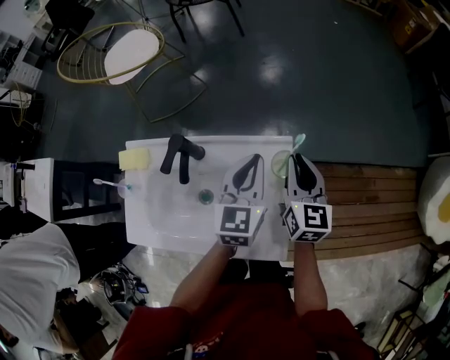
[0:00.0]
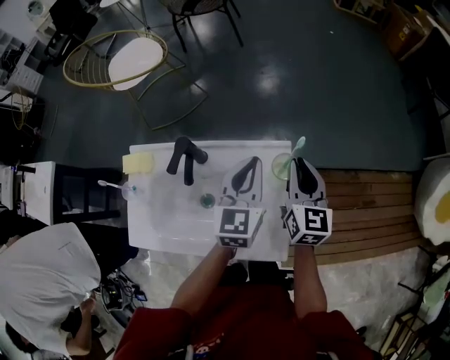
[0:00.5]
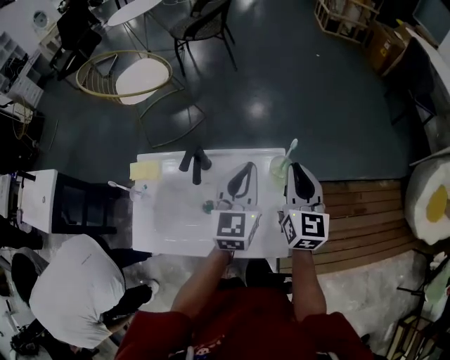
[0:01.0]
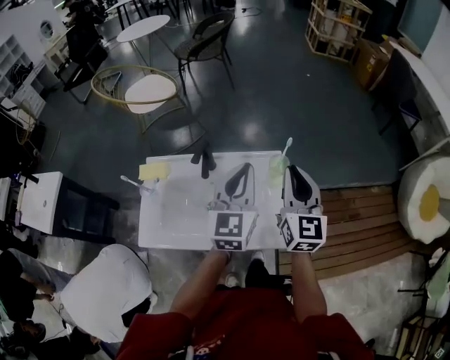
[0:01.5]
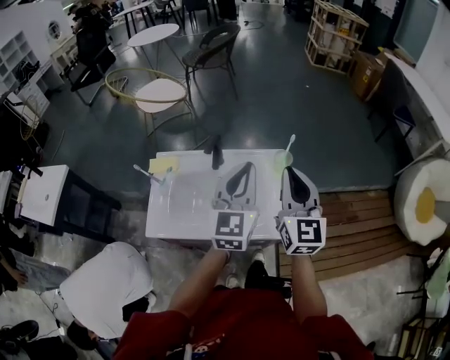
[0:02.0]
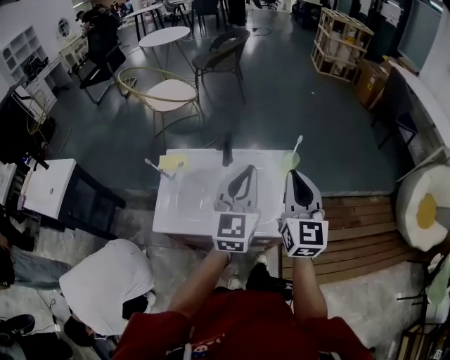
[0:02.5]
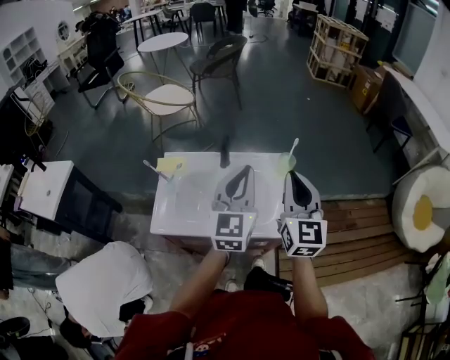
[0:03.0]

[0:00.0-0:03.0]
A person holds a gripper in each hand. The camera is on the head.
0:00.0 to 0:01.5: The left gripper travels upward, backward and to the left by approximately 20 cm, while the right gripper moves upward and backward, approximately 20 cm, and turns by approximately 20 degrees.
0:01.5 to 0:03.0: Both grippers travel together backward and to the left, about 15 cm.

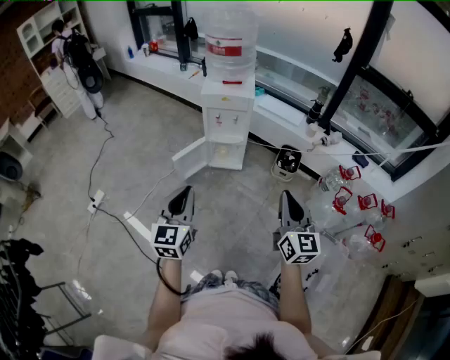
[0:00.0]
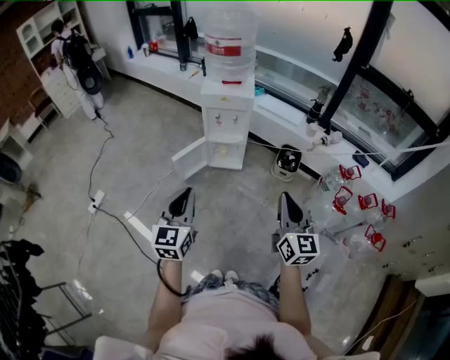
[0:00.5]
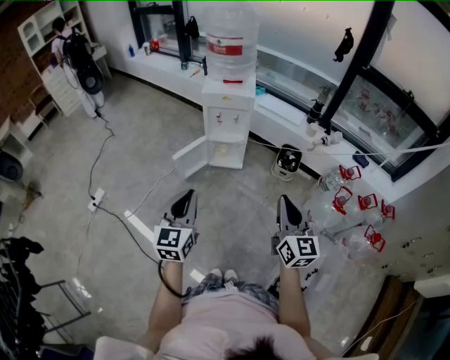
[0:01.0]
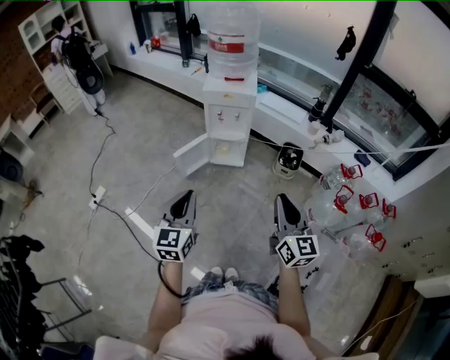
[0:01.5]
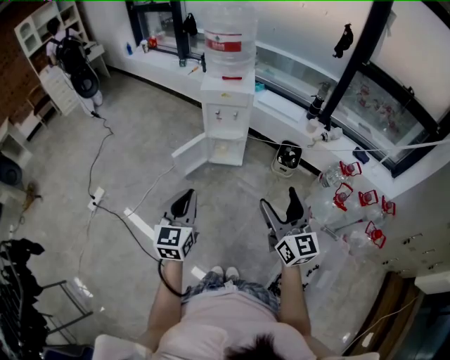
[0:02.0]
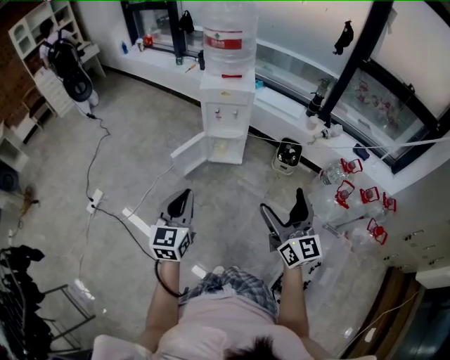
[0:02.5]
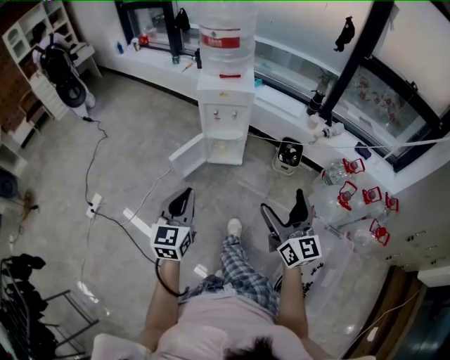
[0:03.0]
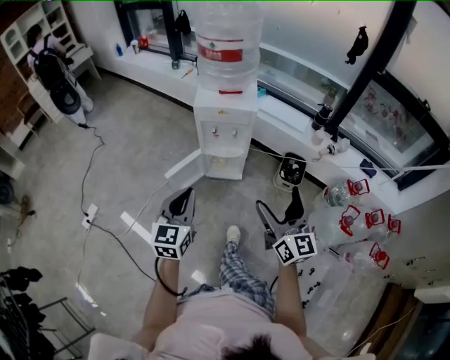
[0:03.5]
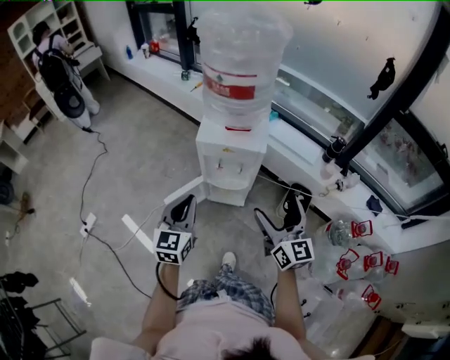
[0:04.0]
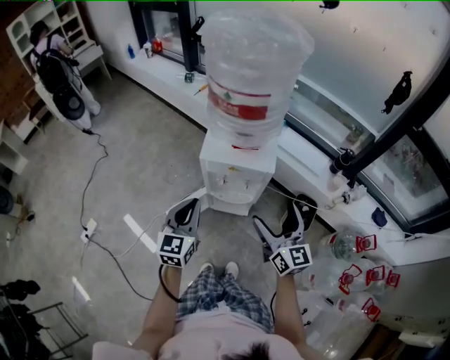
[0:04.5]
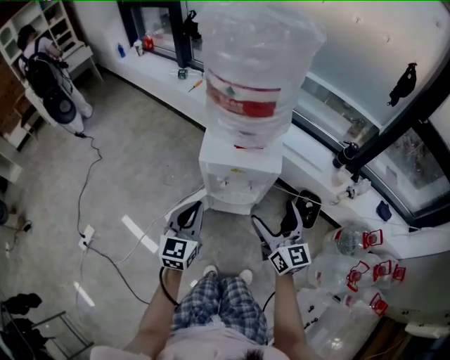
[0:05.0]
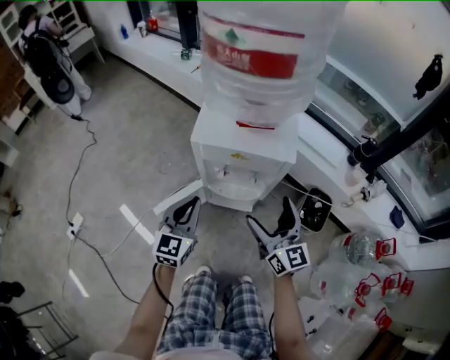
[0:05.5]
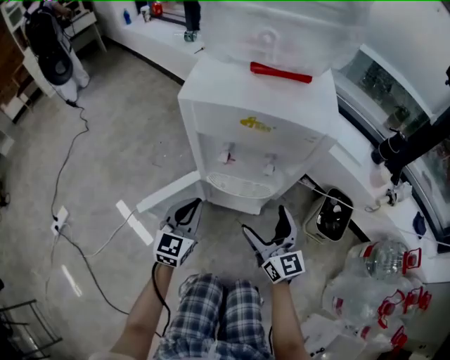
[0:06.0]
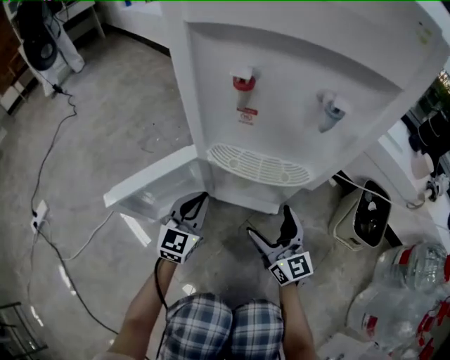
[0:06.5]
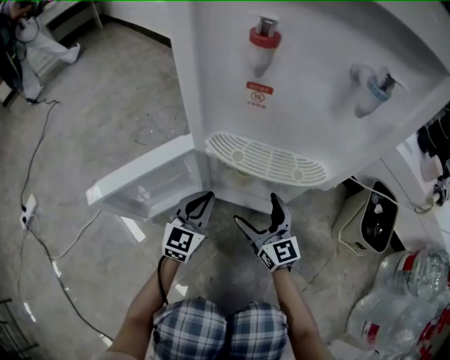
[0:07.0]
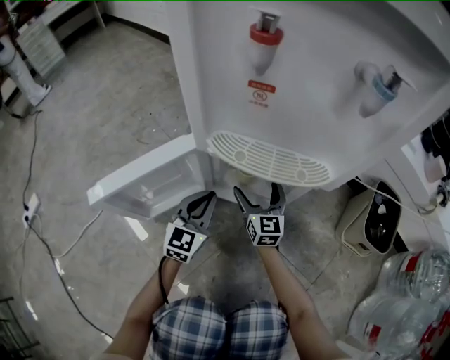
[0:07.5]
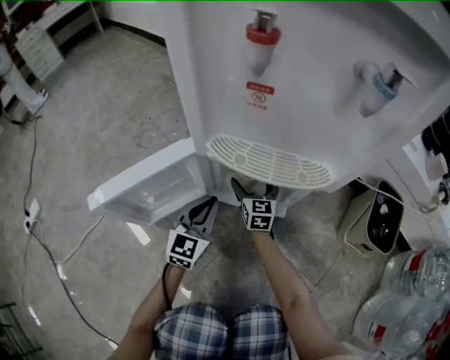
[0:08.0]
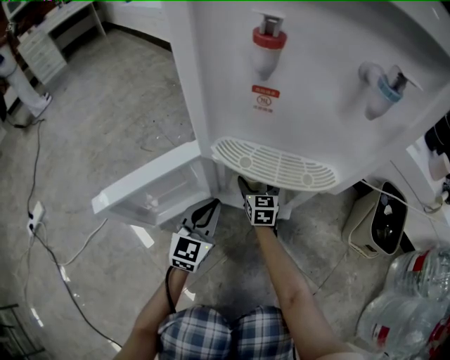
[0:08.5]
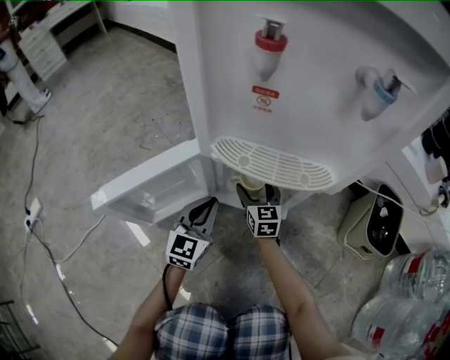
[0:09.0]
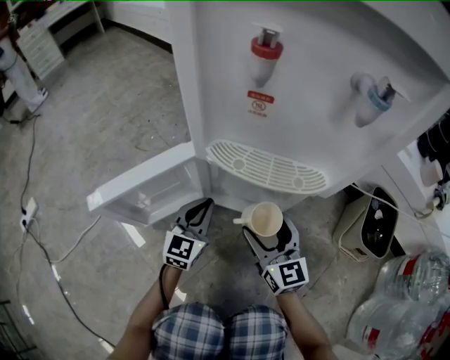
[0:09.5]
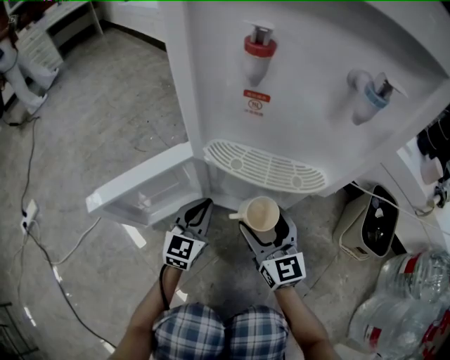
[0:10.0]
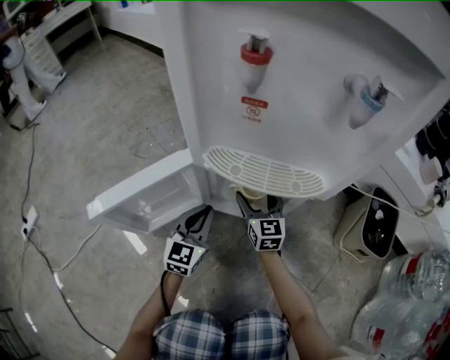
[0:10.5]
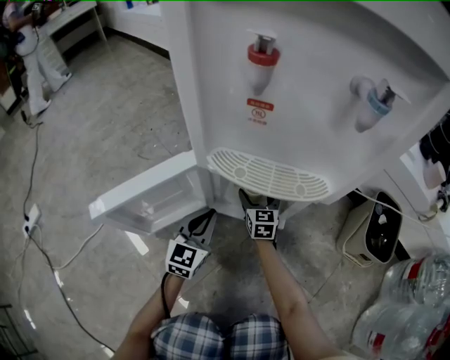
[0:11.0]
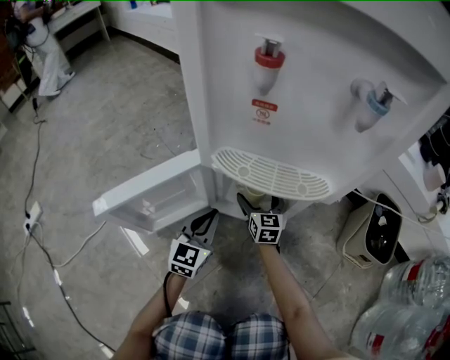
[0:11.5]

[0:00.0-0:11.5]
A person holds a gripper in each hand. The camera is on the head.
0:00.0 to 0:02.0: The right gripper opens its fingers.
0:02.0 to 0:04.0: Both grippers travel together forward, about 35 cm.
0:04.0 to 0:06.0: The left gripper heads downward and forward, covering some 40 cm, while the right gripper is displaced downward by some 40 cm.
0:06.0 to 0:07.5: The right gripper is displaced downward and forward by about 40 cm, while the left gripper goes approximately 30 cm downward.
0:07.5 to 0:09.5: The right gripper is displaced backward and upward by roughly 15 cm.
0:09.5 to 0:11.5: The right gripper travels forward and downward by some 20 cm.

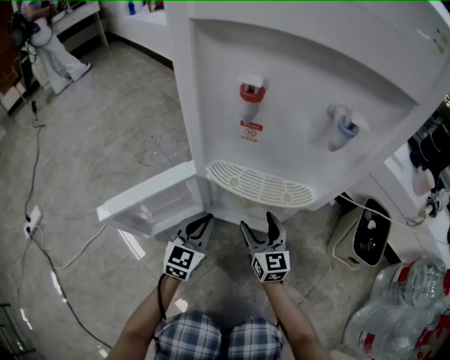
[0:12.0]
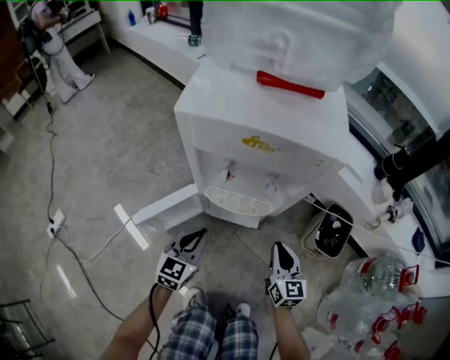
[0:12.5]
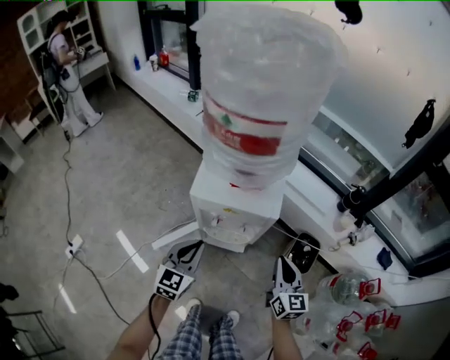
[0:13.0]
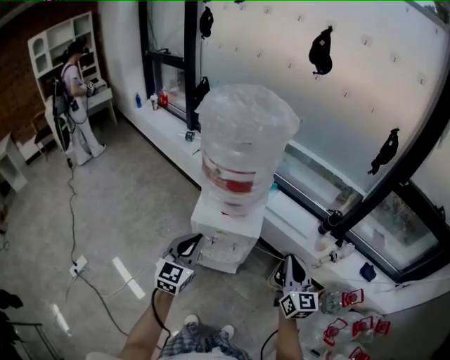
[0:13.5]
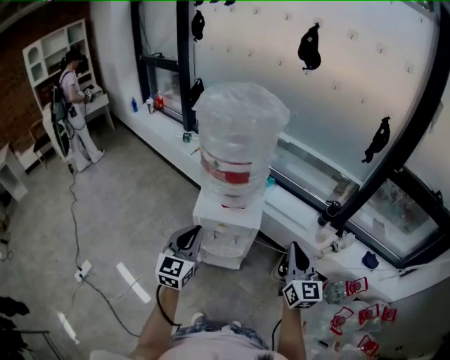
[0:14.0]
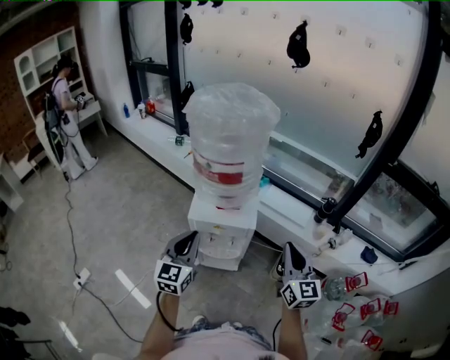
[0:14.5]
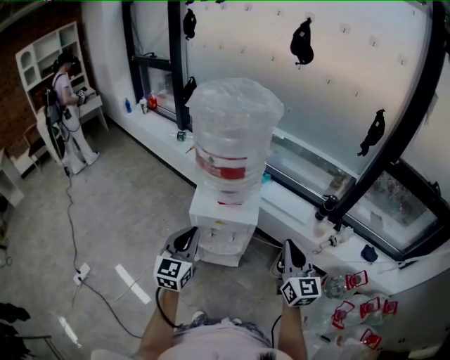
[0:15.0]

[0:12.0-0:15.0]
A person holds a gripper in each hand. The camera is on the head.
0:12.0 to 0:13.5: Both grippers move upward, roughly 70 cm. The right gripper closes.
0:13.5 to 0:15.0: The grippers stay close to where they were, moving slightly.

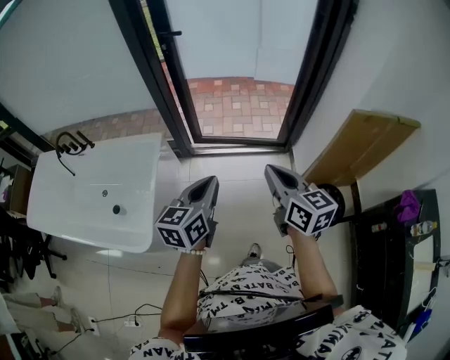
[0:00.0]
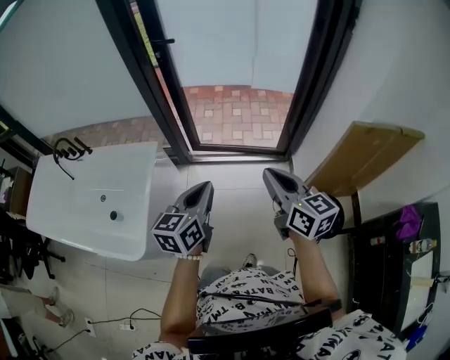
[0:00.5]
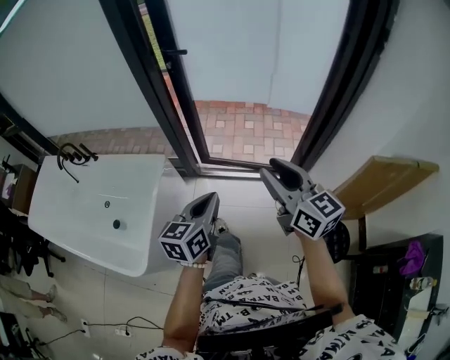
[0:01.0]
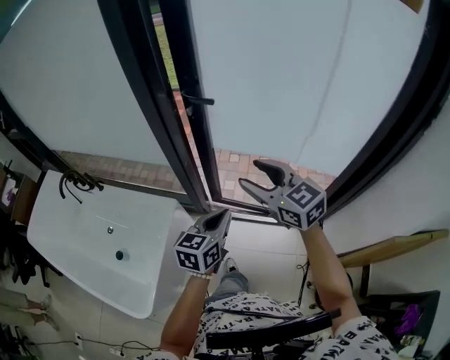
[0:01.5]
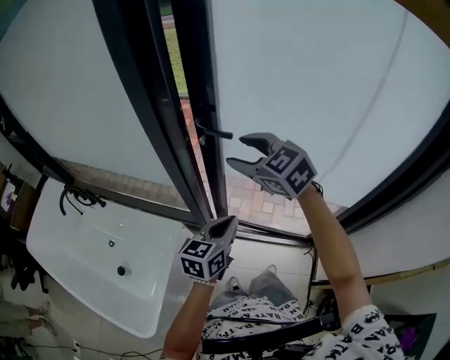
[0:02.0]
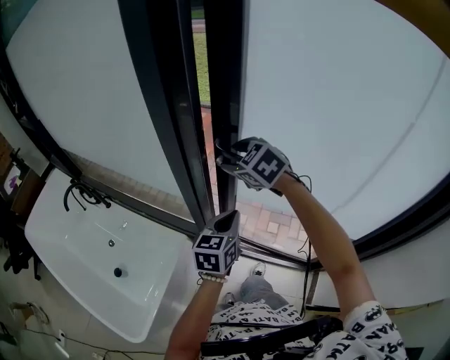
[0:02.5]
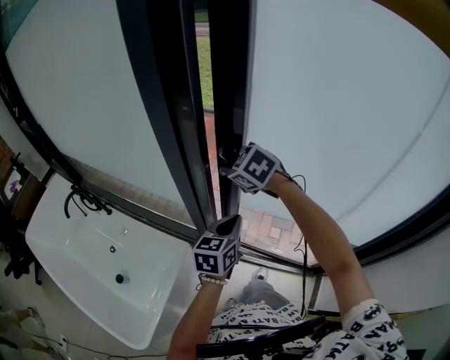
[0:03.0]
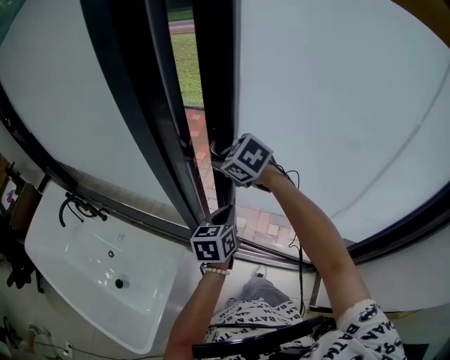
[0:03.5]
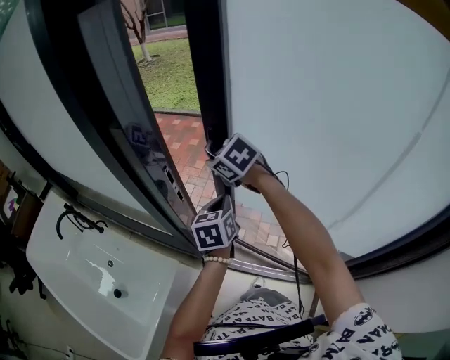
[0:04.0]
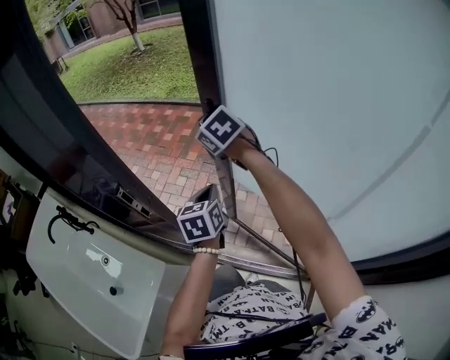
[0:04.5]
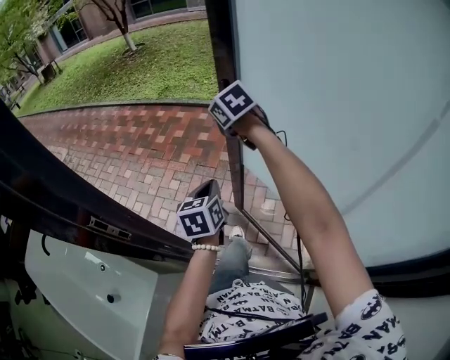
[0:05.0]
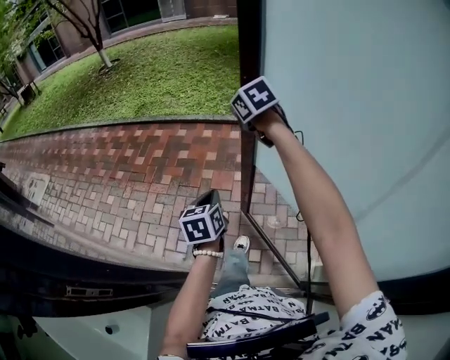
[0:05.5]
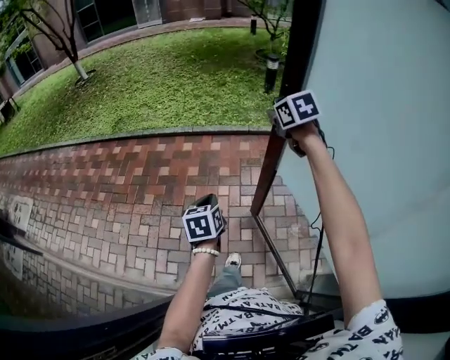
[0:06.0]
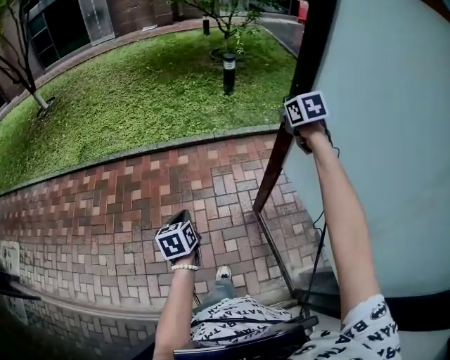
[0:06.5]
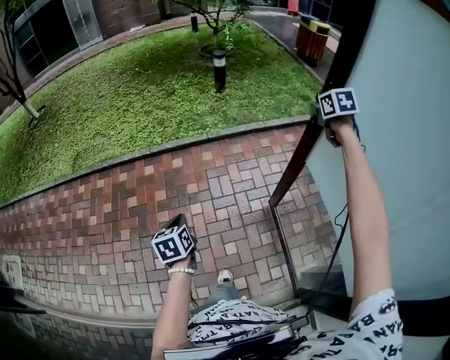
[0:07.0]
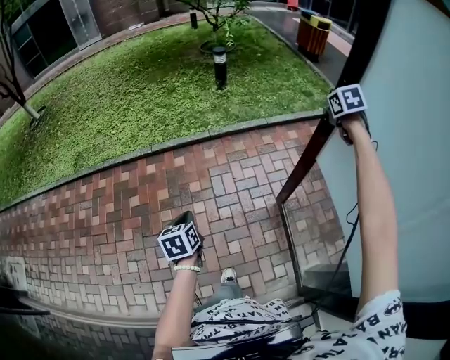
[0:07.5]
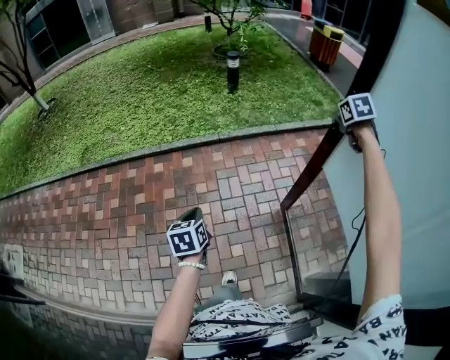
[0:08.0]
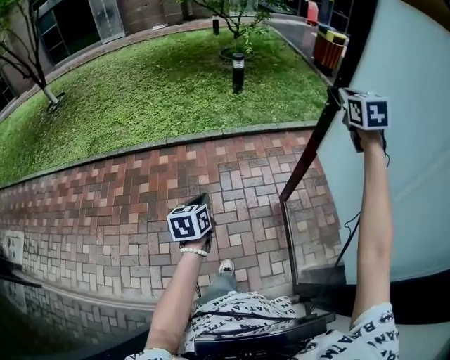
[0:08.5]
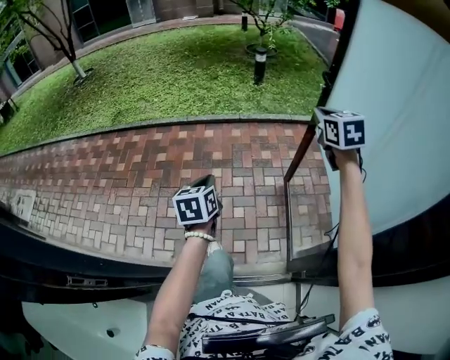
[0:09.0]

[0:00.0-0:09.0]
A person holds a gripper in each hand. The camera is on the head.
0:00.0 to 0:02.0: The pair of grippers is taken forward, some 50 cm. The right gripper turns by some 50 degrees, and opens.
0:02.0 to 0:04.5: Both grippers travel together forward, some 35 cm. The right gripper closes up, while the left gripper rotates roughly 30 degrees.
0:04.5 to 0:07.0: The left gripper changes place by approximately 50 cm, and changes its angle by some 30 degrees; the right gripper shifts by some 90 cm, and swivels roughly 70 degrees.
0:07.0 to 0:09.0: The right gripper is displaced backward by some 35 cm, and swivels roughly 20 degrees. The left gripper travels backward and upward by some 25 cm.
